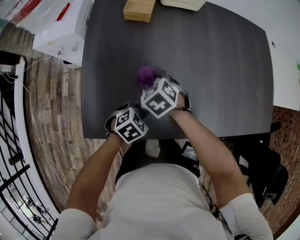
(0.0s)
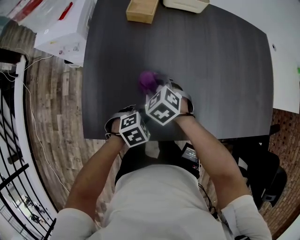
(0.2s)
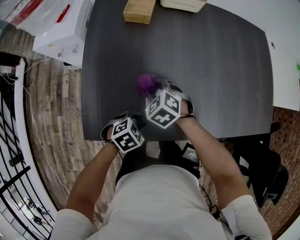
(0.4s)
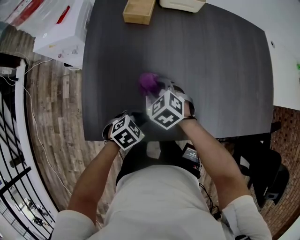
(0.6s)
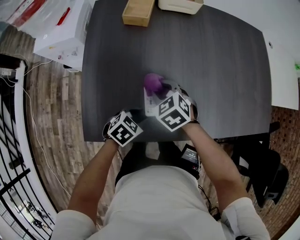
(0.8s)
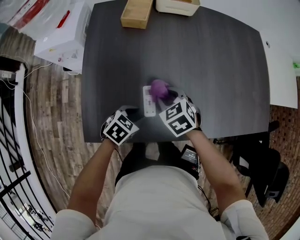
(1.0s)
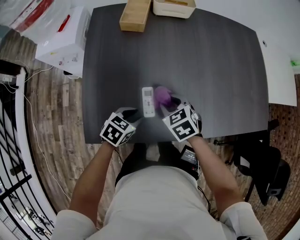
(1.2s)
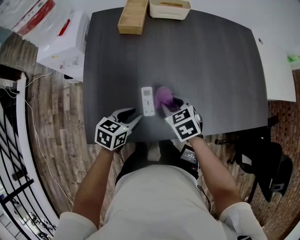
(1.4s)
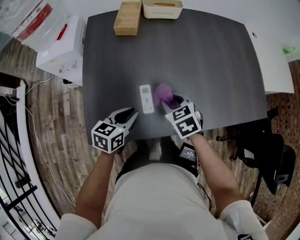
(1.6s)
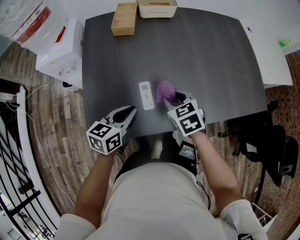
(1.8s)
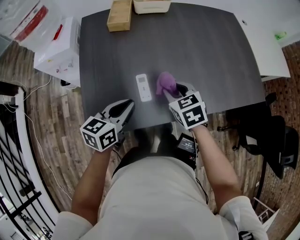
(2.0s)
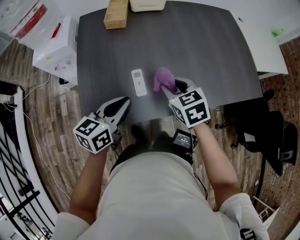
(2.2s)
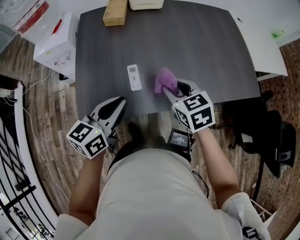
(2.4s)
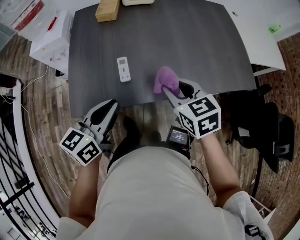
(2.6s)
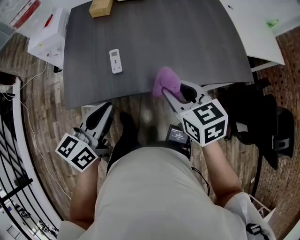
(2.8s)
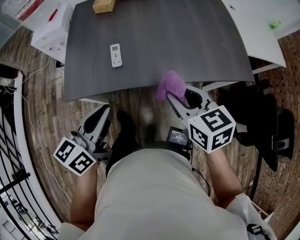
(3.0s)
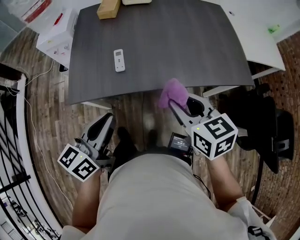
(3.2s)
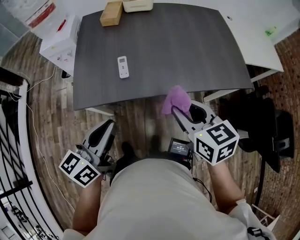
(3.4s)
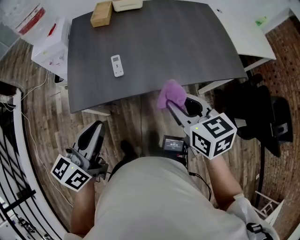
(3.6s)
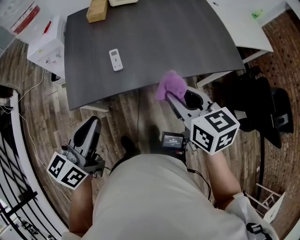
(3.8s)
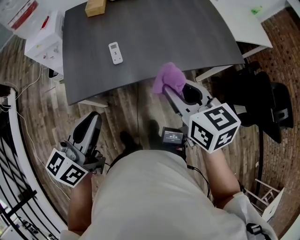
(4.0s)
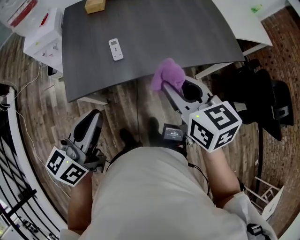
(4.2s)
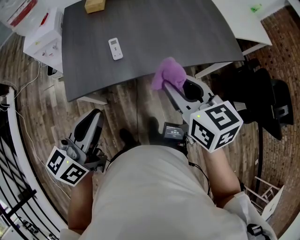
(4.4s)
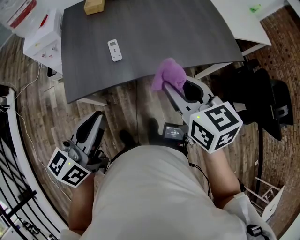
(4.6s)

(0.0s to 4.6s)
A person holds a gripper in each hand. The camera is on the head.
0.0s - 1.6s: The left gripper goes approximately 10 cm upward, and turns by about 40 degrees. The right gripper goes approximately 15 cm to the right, upward and backward, and turns by approximately 20 degrees.
1.6s - 3.0s: The left gripper is displaced backward, upward and to the right by about 30 cm, and turns by about 20 degrees. Meanwhile the right gripper shifts approximately 30 cm backward, to the right and upward, and swivels approximately 20 degrees.
3.0s - 4.6s: The right gripper goes roughly 10 cm upward and to the left. Meanwhile the left gripper shifts roughly 10 cm to the left and backward.

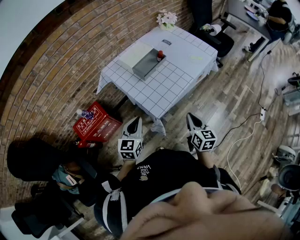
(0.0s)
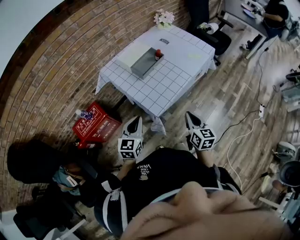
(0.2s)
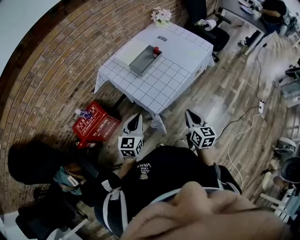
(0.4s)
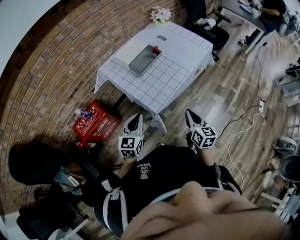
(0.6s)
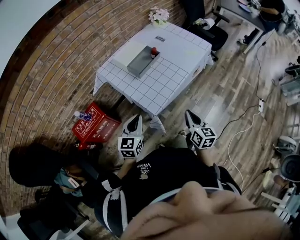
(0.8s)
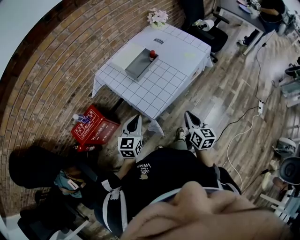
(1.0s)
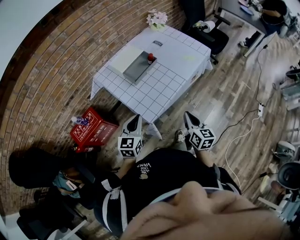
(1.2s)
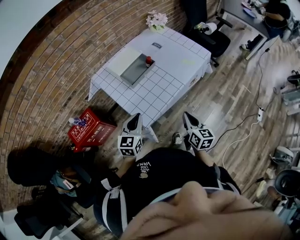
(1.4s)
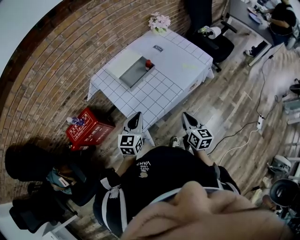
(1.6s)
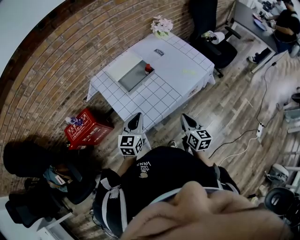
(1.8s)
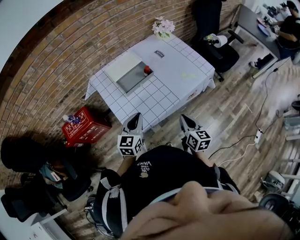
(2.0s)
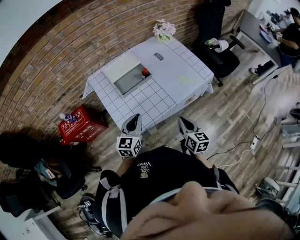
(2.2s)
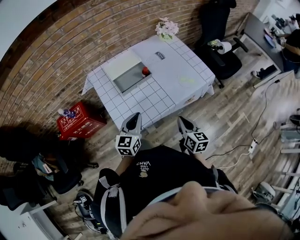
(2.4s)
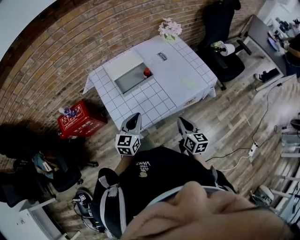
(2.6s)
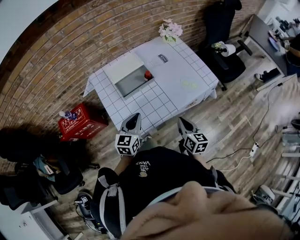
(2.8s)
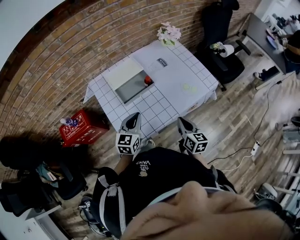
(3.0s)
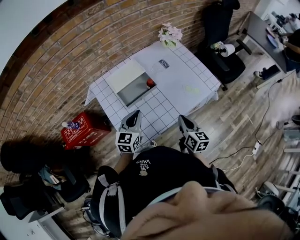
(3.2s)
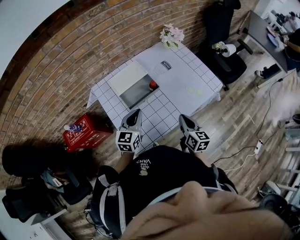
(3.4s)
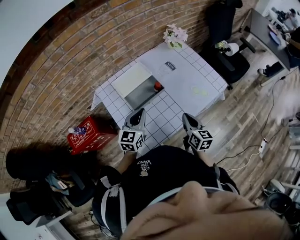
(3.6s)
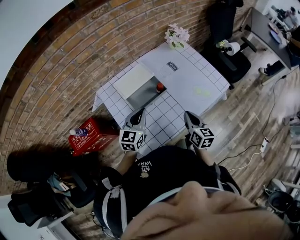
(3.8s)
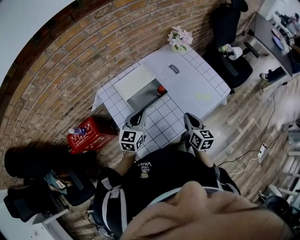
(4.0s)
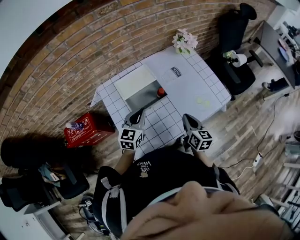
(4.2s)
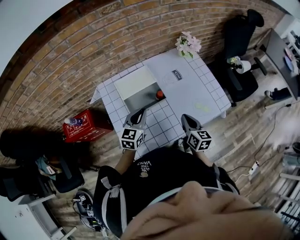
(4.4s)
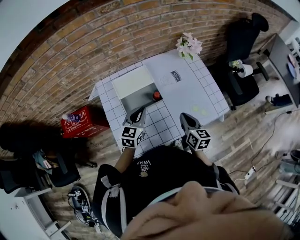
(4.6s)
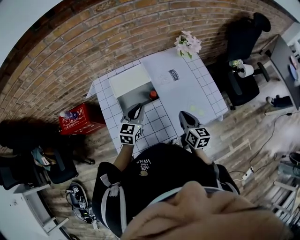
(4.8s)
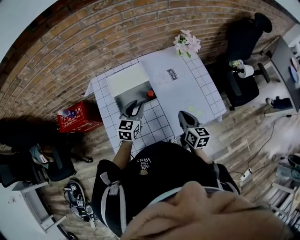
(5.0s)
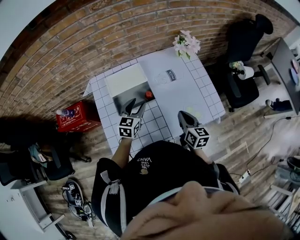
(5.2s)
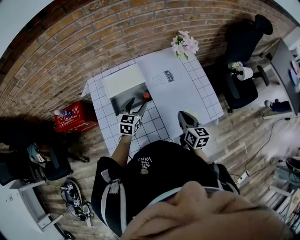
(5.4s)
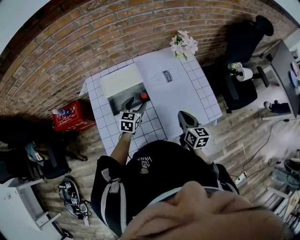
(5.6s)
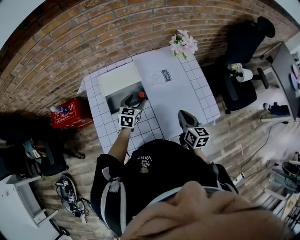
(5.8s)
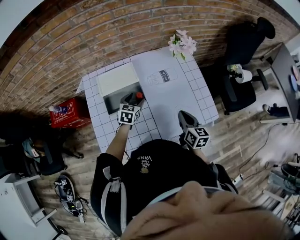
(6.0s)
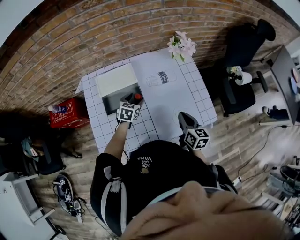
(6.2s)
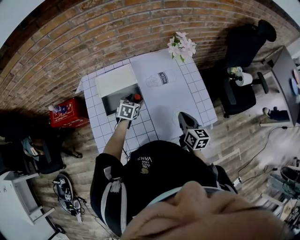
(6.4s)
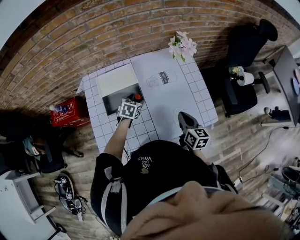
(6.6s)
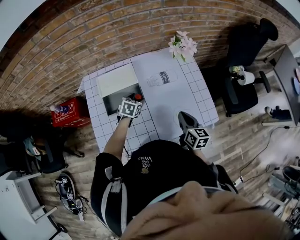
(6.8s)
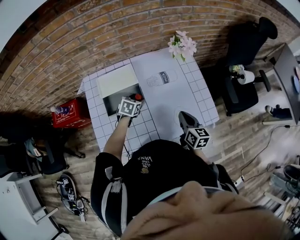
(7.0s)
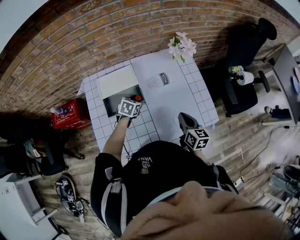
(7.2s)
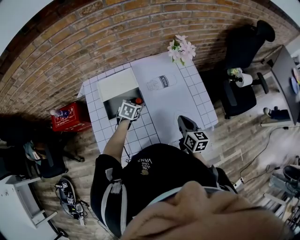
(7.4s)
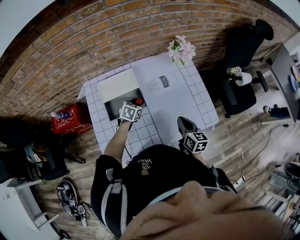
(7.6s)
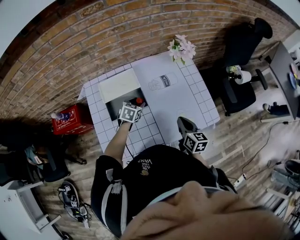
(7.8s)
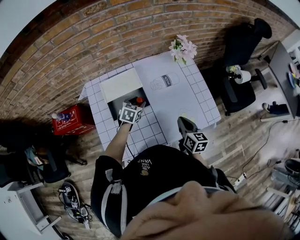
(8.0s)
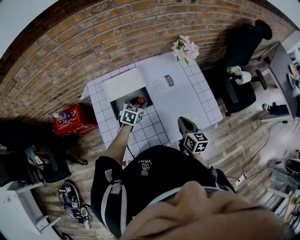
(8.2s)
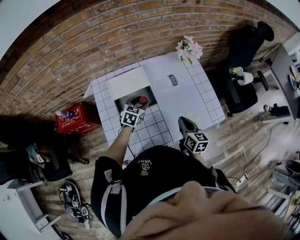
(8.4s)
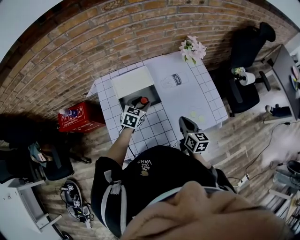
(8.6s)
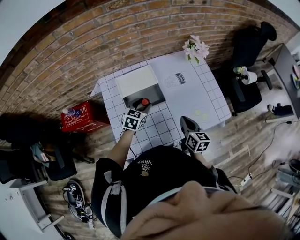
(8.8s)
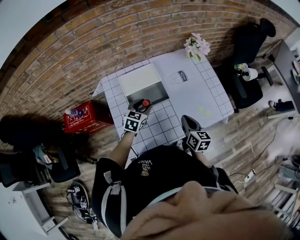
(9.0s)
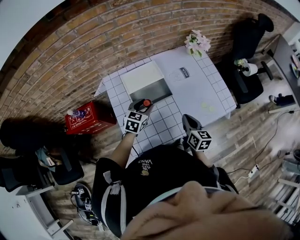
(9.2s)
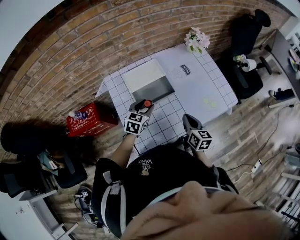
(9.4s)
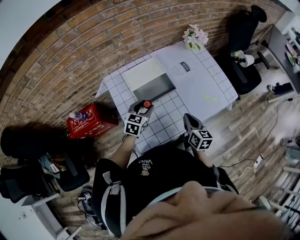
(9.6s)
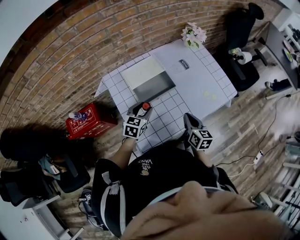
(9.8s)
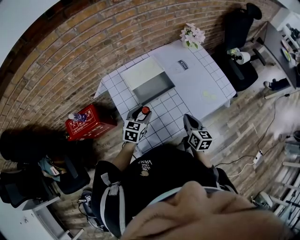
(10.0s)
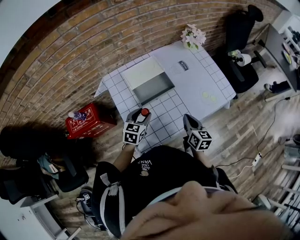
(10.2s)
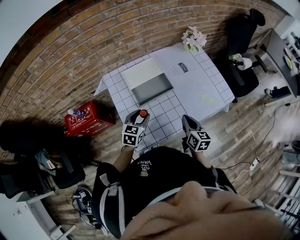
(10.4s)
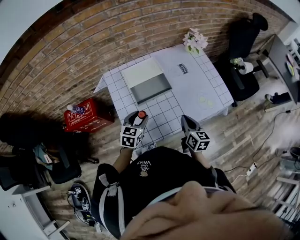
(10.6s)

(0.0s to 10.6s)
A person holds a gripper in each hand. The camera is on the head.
0.0s - 1.6s: The grippers both shift forward and to the right by roughly 15 cm.
1.6s - 3.0s: The left gripper goes about 15 cm forward and to the right; the right gripper travels forward by roughly 15 cm.
3.0s - 4.6s: Both grippers travel together forward, approximately 15 cm.
4.6s - 6.0s: The left gripper travels downward, forward and to the right by about 15 cm, and opens up. Meanwhile the right gripper shifts some 10 cm to the right.
6.0s - 7.6s: There are only small adjustments of the grippers.
7.6s - 9.0s: The right gripper shifts approximately 15 cm to the left and backward. The left gripper travels to the left, upward and backward by roughly 15 cm.
9.0s - 10.6s: The right gripper is displaced backward by roughly 5 cm. Meanwhile the left gripper travels backward by about 15 cm.

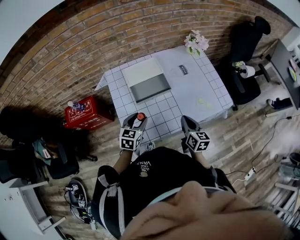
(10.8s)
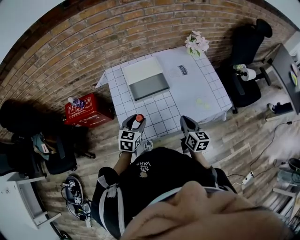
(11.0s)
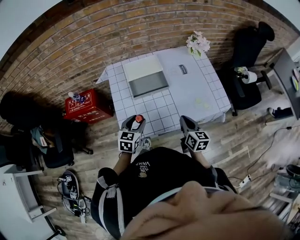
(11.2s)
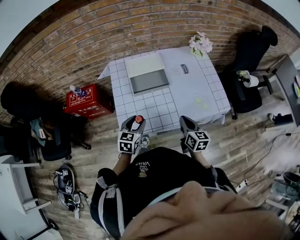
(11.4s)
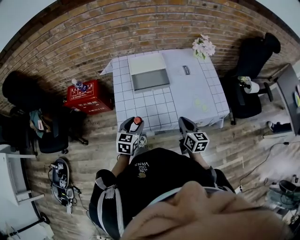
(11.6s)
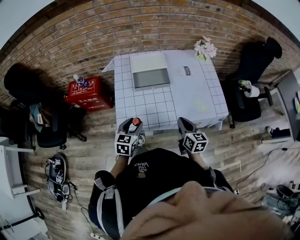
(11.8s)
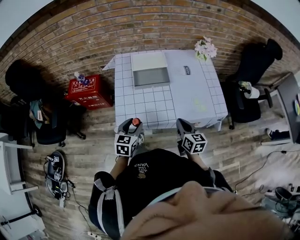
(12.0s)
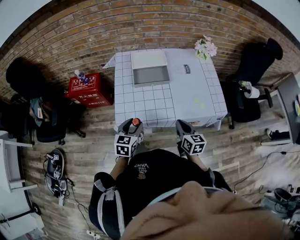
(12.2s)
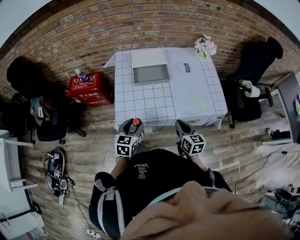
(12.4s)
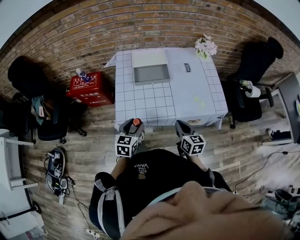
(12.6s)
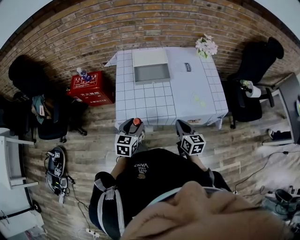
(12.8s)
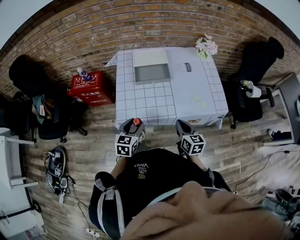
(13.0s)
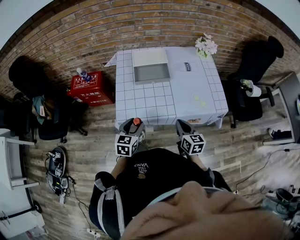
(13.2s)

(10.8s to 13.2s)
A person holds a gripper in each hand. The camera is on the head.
10.8s - 12.0s: The right gripper heads backward, covering some 5 cm; the left gripper goes approximately 15 cm backward.
12.0s - 13.2s: The grippers move only a little.

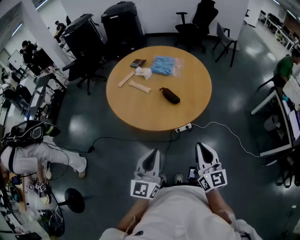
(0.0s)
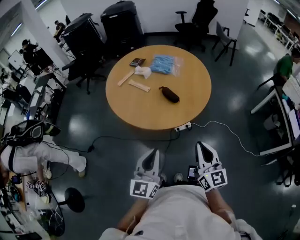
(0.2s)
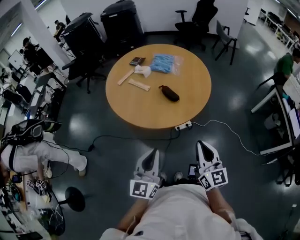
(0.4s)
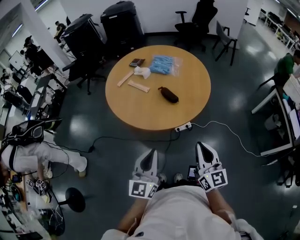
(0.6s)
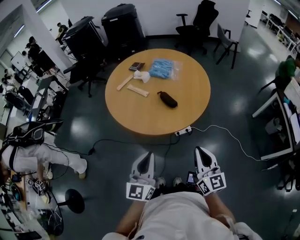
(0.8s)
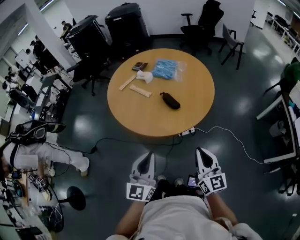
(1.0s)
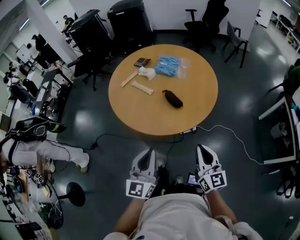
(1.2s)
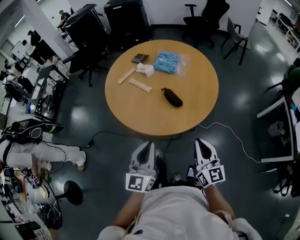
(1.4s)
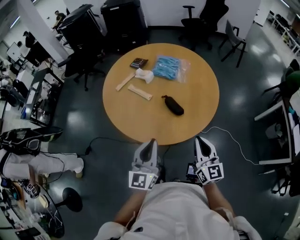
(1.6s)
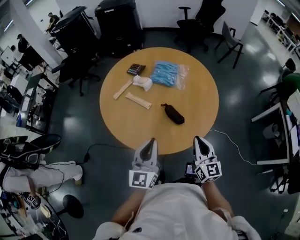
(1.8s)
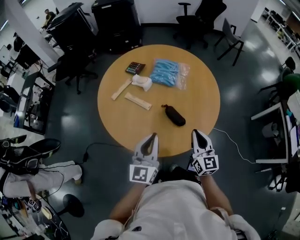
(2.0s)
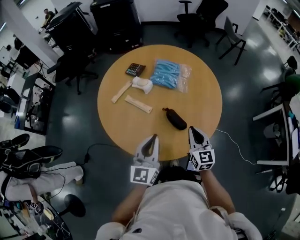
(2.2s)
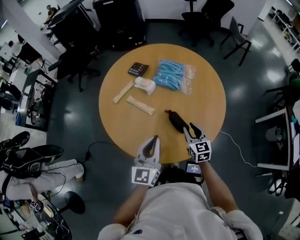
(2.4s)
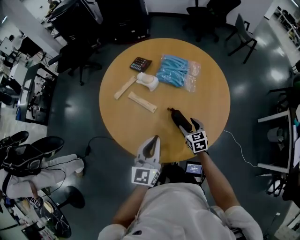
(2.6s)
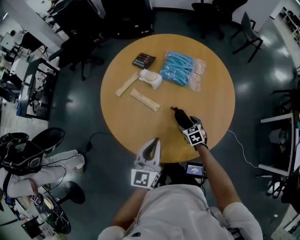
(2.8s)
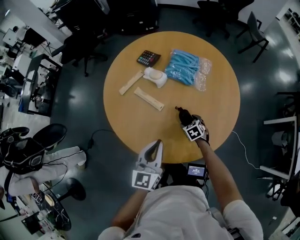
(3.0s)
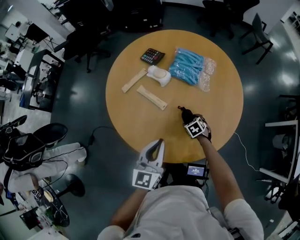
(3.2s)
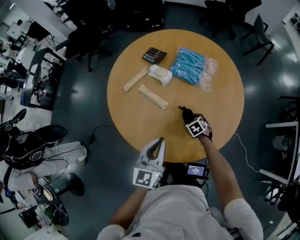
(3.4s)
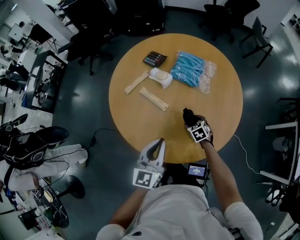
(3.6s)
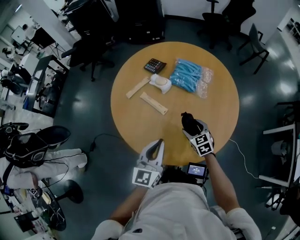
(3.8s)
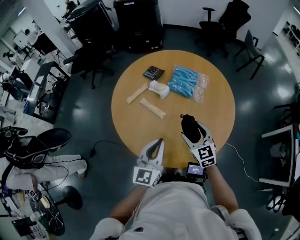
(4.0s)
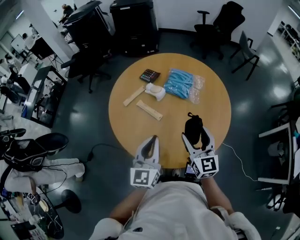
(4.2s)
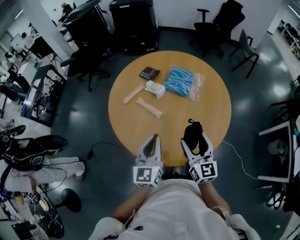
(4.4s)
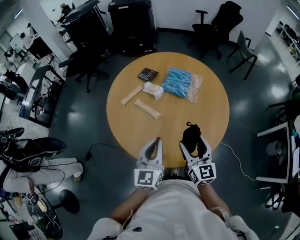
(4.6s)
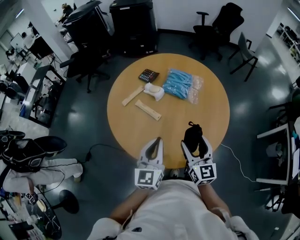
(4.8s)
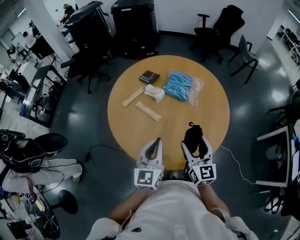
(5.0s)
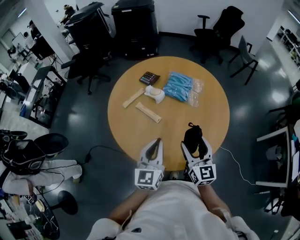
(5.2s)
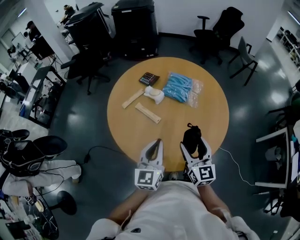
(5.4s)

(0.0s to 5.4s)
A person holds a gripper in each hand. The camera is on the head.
0.0s - 1.4s: The two grippers go roughly 10 cm forward.
1.4s - 2.8s: The left gripper heads forward, covering some 25 cm, while the right gripper goes roughly 50 cm forward and downward, angles its fingers downward, by approximately 50 degrees, and opens up.
2.8s - 4.0s: The right gripper is displaced upward by roughly 20 cm, and turns by about 30 degrees.
4.0s - 5.4s: The right gripper travels upward and backward by some 10 cm, and changes its angle by about 20 degrees.
